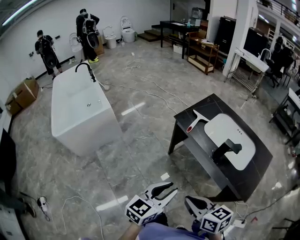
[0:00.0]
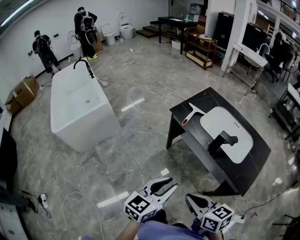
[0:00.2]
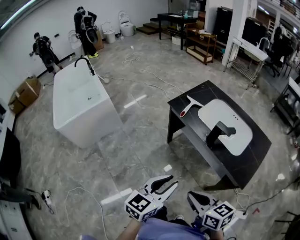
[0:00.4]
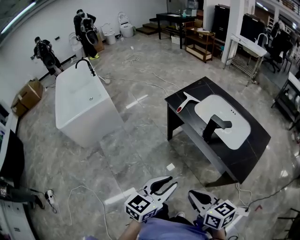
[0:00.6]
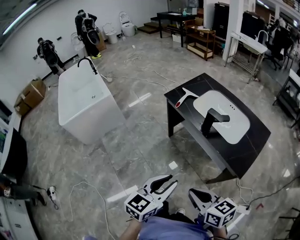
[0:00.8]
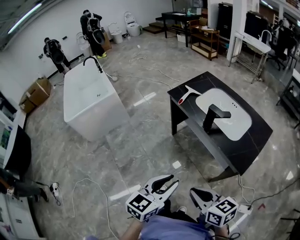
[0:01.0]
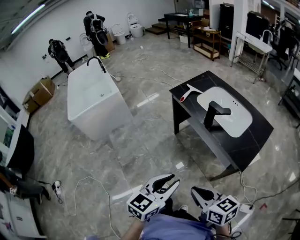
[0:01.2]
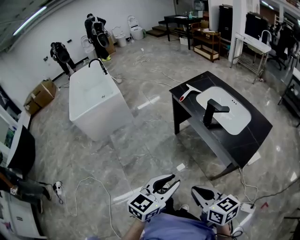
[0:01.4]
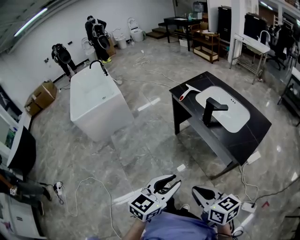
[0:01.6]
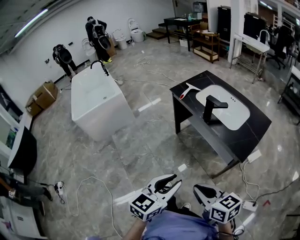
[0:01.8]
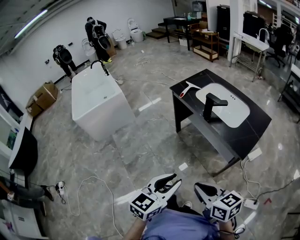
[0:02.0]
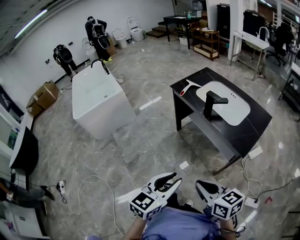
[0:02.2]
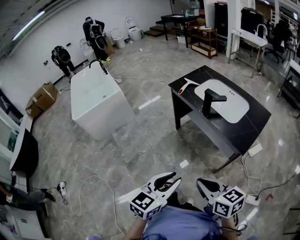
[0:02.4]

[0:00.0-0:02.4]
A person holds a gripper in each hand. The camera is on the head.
0:00.0 to 0:01.2: The two grippers go about 20 cm backward and to the right.
0:01.2 to 0:02.4: The grippers both shift backward by approximately 5 cm.

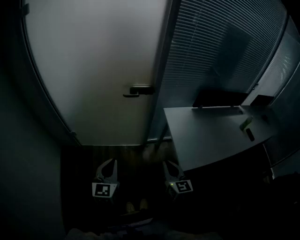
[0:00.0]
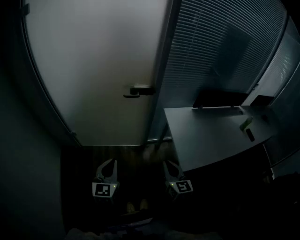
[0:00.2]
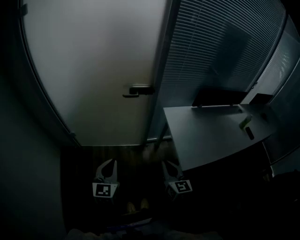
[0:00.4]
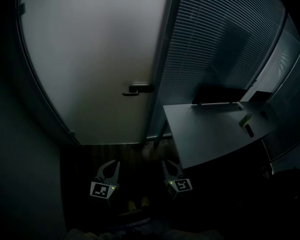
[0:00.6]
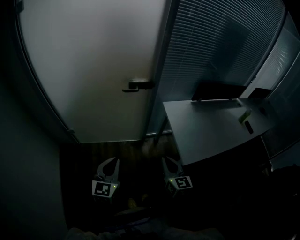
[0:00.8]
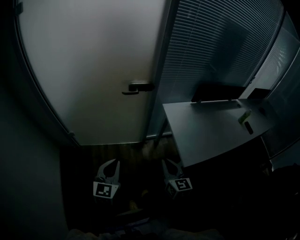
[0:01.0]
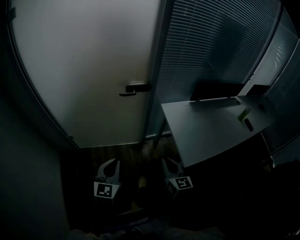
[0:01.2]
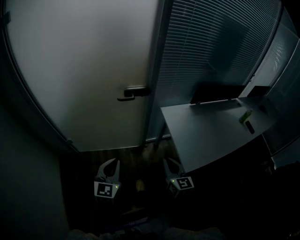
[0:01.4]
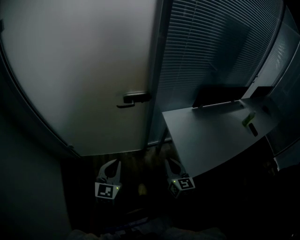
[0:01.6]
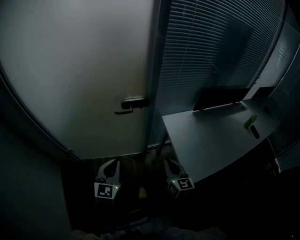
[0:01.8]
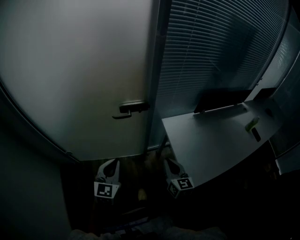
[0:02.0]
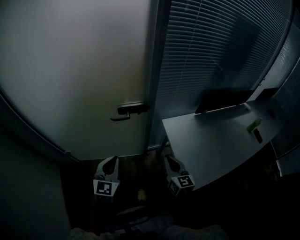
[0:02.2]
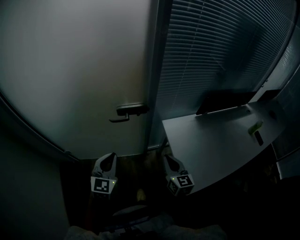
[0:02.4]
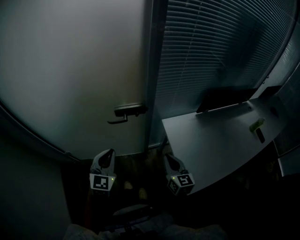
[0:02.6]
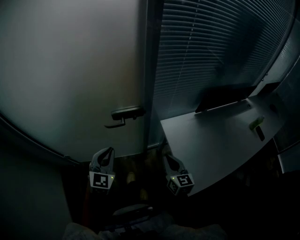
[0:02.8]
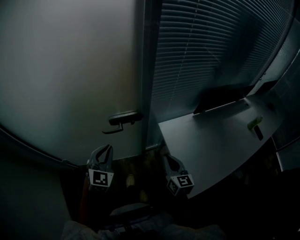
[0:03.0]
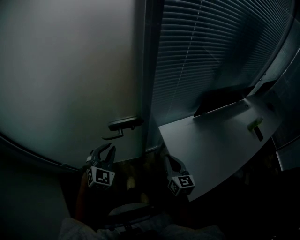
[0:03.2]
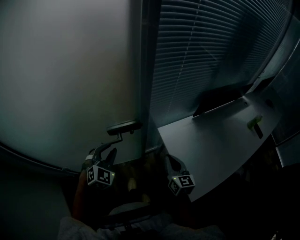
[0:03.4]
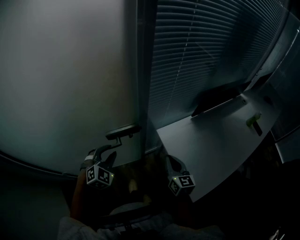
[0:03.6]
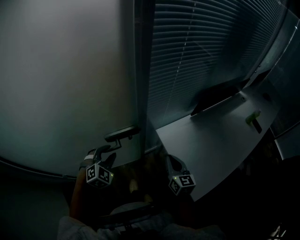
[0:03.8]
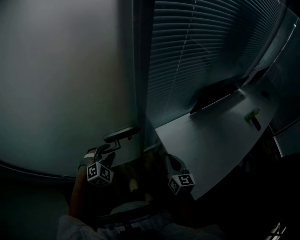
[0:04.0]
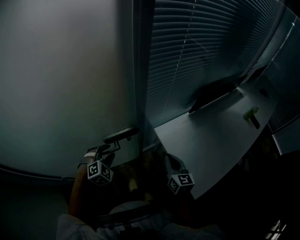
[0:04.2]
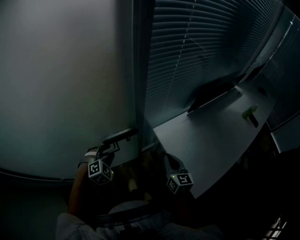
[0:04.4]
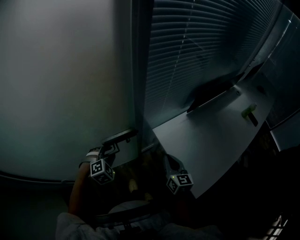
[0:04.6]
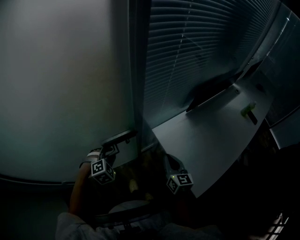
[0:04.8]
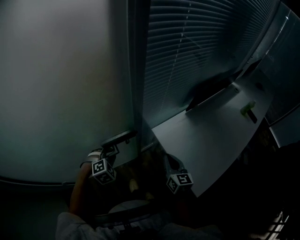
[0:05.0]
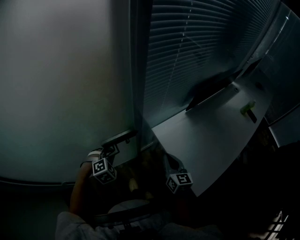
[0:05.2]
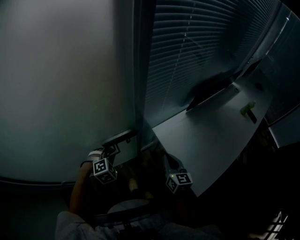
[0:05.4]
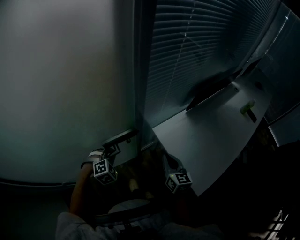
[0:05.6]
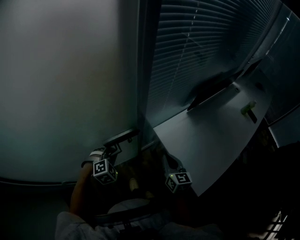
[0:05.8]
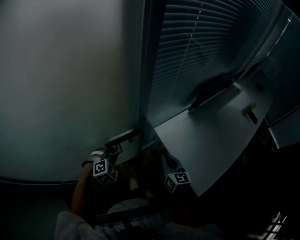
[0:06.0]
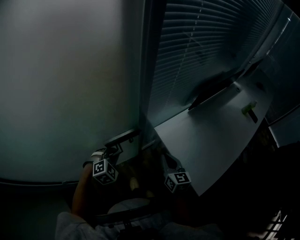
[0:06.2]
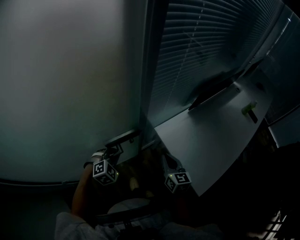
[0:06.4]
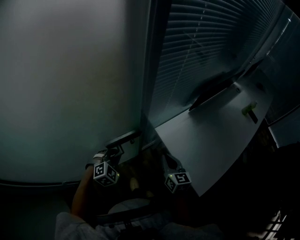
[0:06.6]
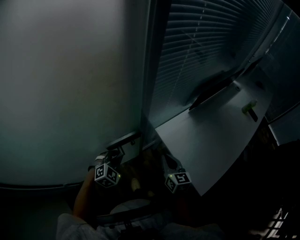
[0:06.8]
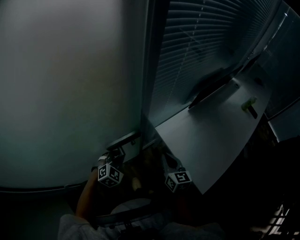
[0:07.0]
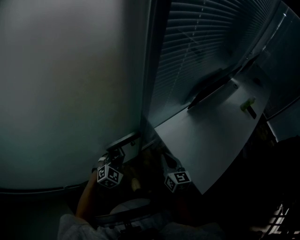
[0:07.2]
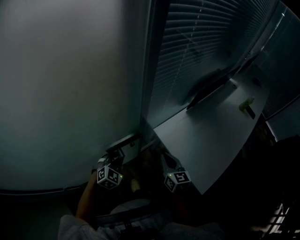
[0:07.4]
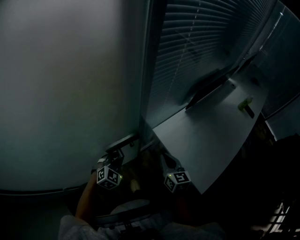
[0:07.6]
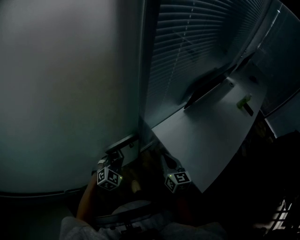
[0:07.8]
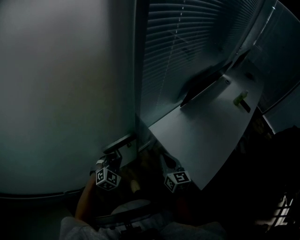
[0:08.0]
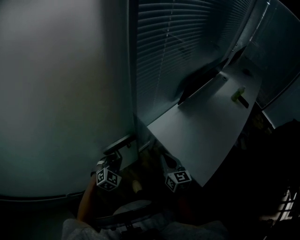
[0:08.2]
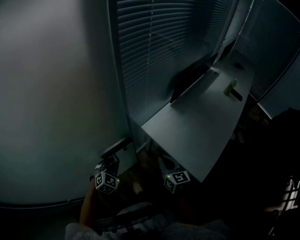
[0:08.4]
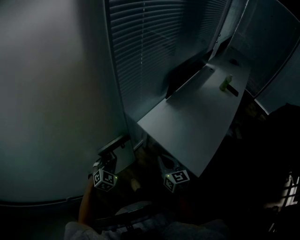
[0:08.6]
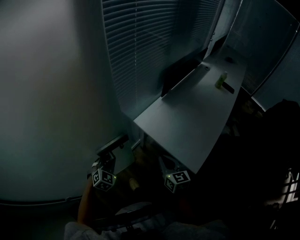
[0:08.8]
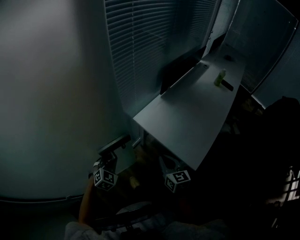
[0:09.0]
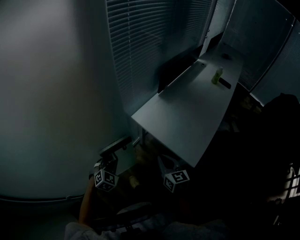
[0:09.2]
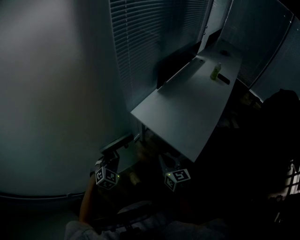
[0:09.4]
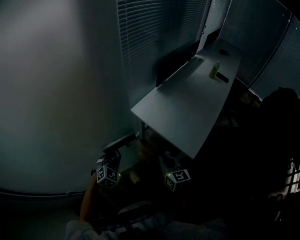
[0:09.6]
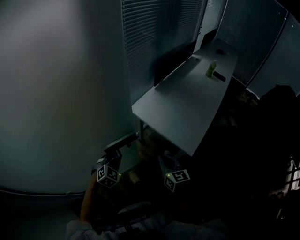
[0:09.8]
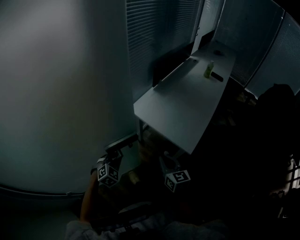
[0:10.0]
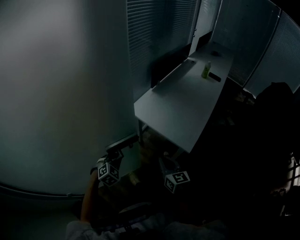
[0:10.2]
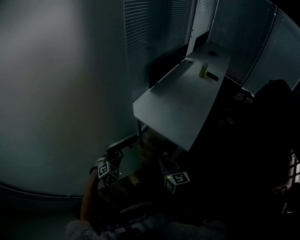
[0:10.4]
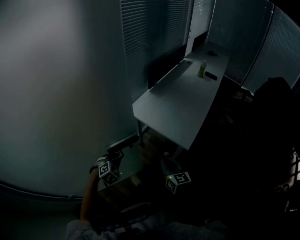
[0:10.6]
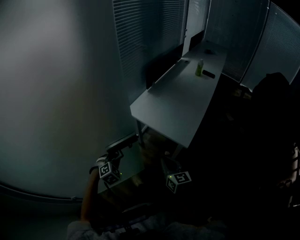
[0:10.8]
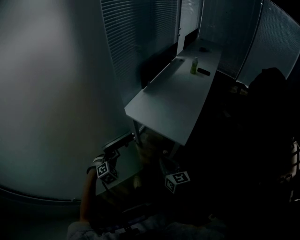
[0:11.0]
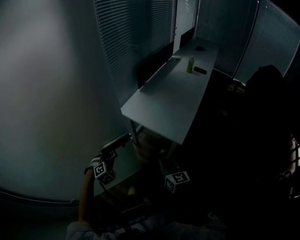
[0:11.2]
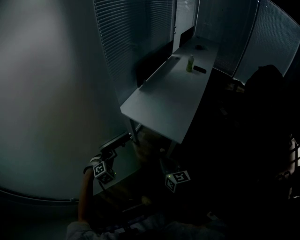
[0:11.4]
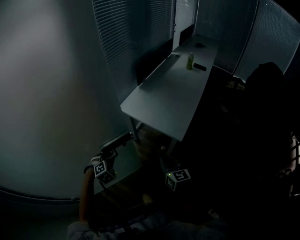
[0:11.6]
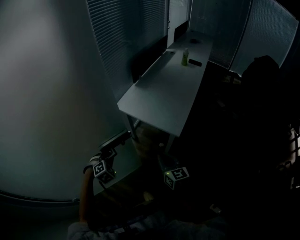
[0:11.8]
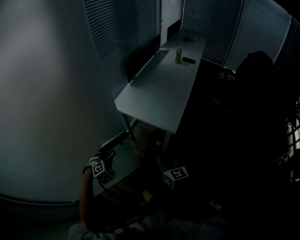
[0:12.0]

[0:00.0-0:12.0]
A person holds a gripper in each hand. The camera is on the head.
0:00.0 to 0:01.6: The two grippers go roughly 10 cm forward.
0:01.6 to 0:03.0: The grippers both shift forward by roughly 20 cm. The left gripper turns by about 20 degrees.
0:03.0 to 0:04.4: The right gripper shifts about 5 cm forward. The left gripper goes approximately 15 cm downward and forward, tilts its fingers approximately 30 degrees downward, and opens.
0:04.4 to 0:06.0: The left gripper closes up.
0:07.6 to 0:09.0: The left gripper shifts approximately 10 cm backward and to the right. Meanwhile the right gripper goes roughly 15 cm backward and to the right.
0:09.0 to 0:10.4: Both grippers travel together backward, some 15 cm.
0:10.4 to 0:12.0: The right gripper travels backward by some 10 cm.

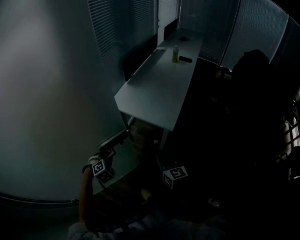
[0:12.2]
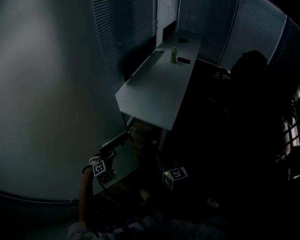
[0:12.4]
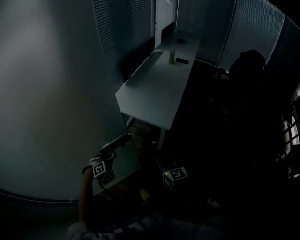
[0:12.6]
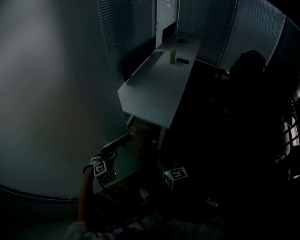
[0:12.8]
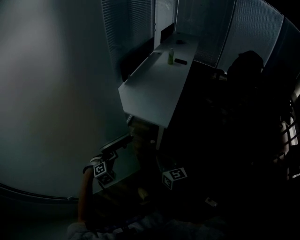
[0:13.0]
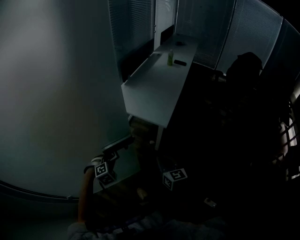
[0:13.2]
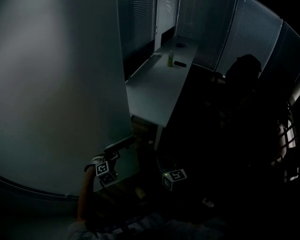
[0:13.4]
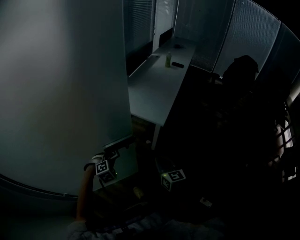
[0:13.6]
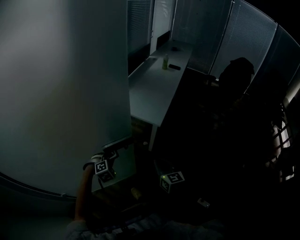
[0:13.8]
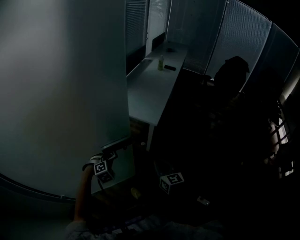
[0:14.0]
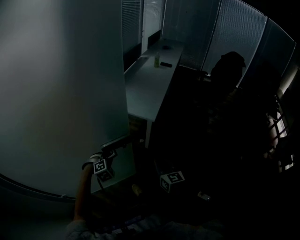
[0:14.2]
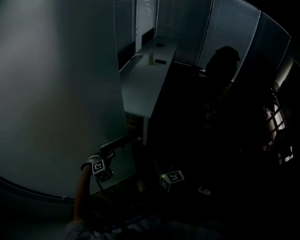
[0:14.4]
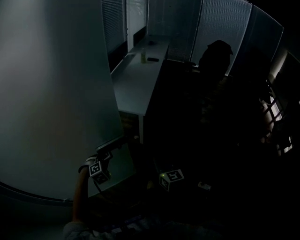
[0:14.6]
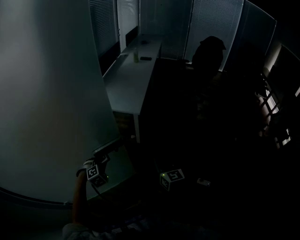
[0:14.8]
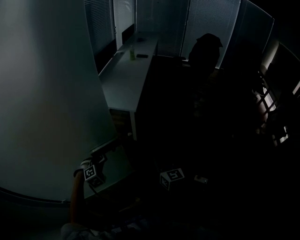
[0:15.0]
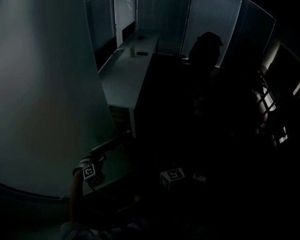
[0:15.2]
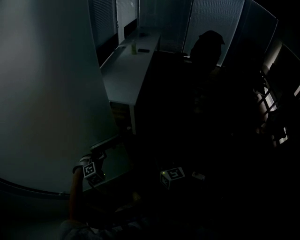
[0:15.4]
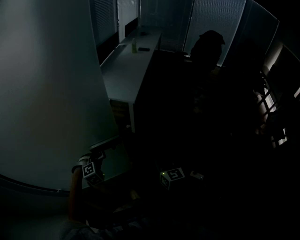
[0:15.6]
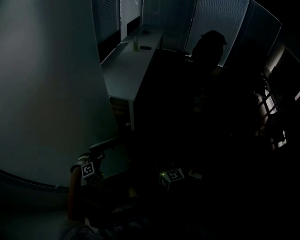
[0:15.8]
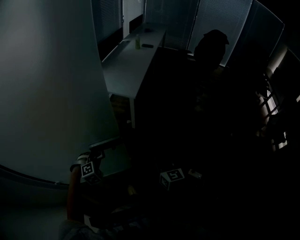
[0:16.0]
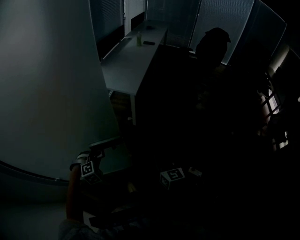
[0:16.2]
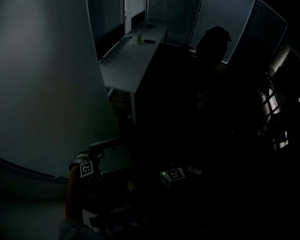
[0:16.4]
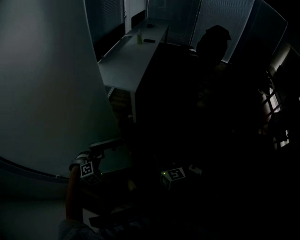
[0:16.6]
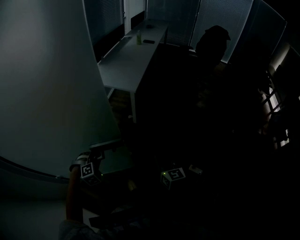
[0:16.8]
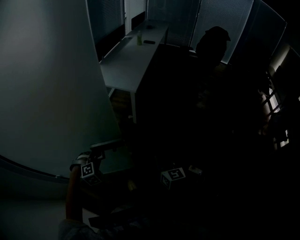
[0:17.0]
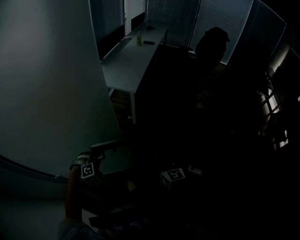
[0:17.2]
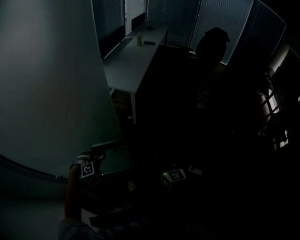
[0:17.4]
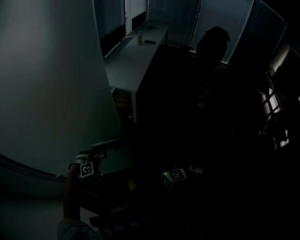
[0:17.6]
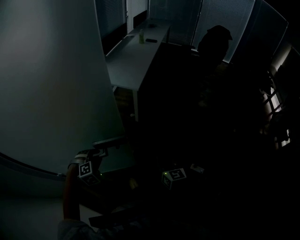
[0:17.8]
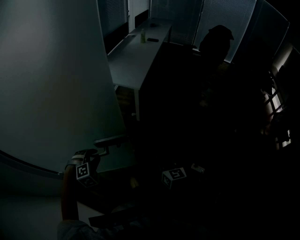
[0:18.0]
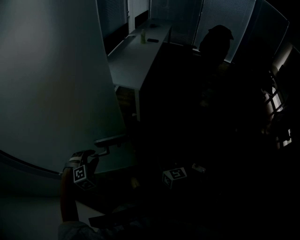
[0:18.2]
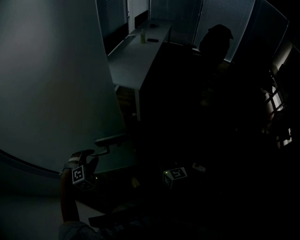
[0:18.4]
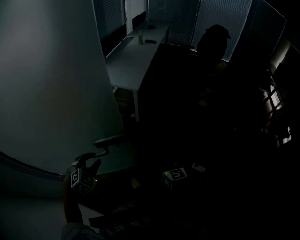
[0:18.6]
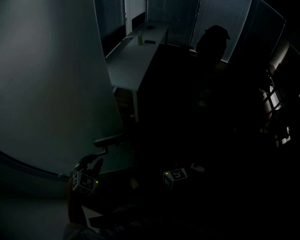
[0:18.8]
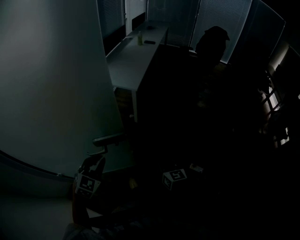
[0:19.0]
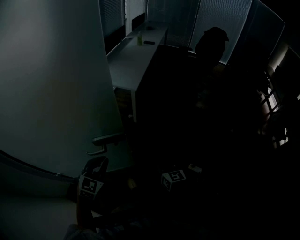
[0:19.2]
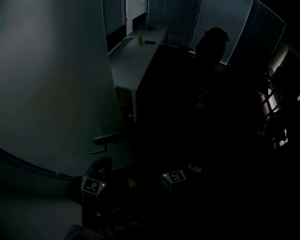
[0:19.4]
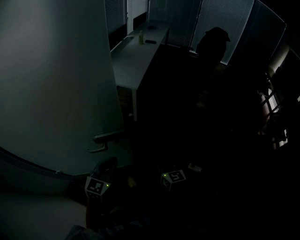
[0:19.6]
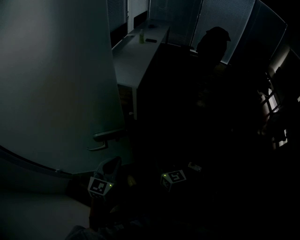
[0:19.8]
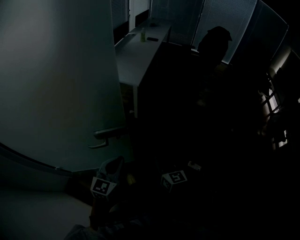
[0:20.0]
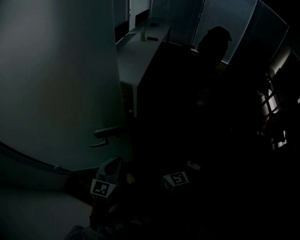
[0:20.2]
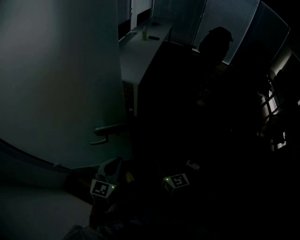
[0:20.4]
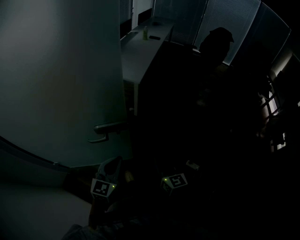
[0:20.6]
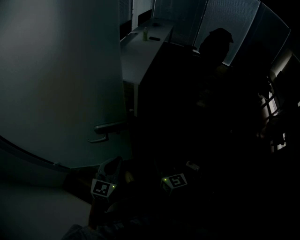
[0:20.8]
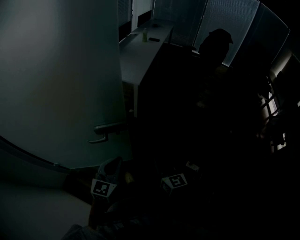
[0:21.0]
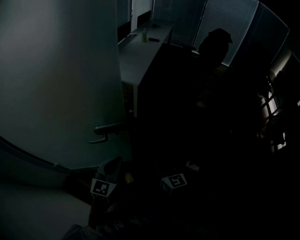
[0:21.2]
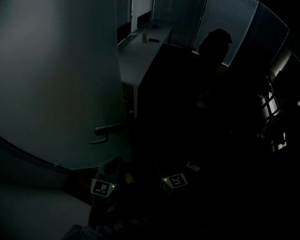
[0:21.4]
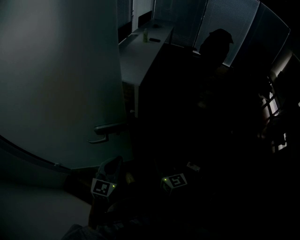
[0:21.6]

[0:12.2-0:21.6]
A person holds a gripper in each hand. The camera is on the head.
0:12.2 to 0:13.8: The left gripper heads backward and to the right, covering some 10 cm, while the right gripper shifts some 15 cm backward.
0:13.8 to 0:15.4: The right gripper moves backward and to the right, some 20 cm; the left gripper travels backward by roughly 15 cm.
0:15.4 to 0:17.0: Both grippers move backward, approximately 5 cm.
0:17.0 to 0:18.4: The left gripper shifts some 10 cm upward, and opens its fingers.
0:18.4 to 0:20.0: The left gripper is displaced to the right by approximately 15 cm, tilts its fingers roughly 40 degrees upward, and closes. The right gripper shifts by approximately 5 cm.
0:20.0 to 0:21.6: The grippers move only a little.
